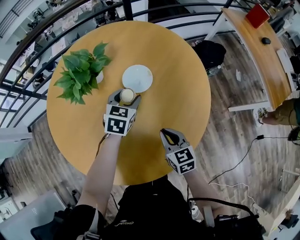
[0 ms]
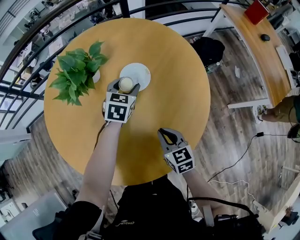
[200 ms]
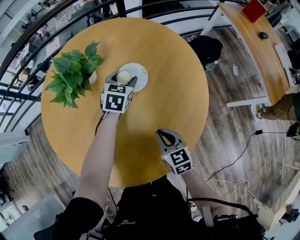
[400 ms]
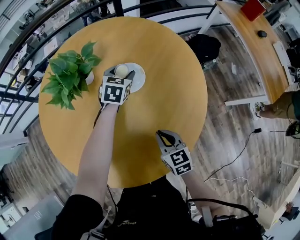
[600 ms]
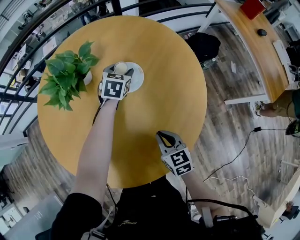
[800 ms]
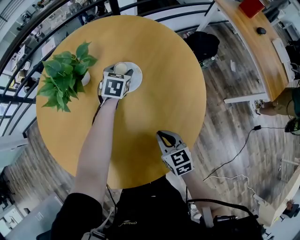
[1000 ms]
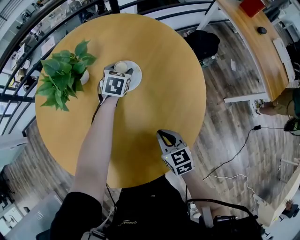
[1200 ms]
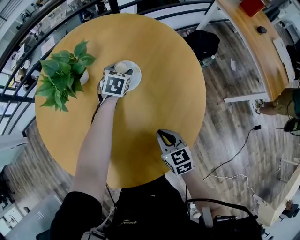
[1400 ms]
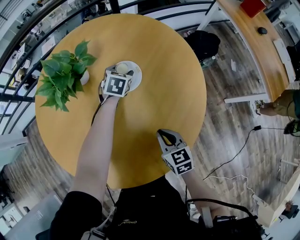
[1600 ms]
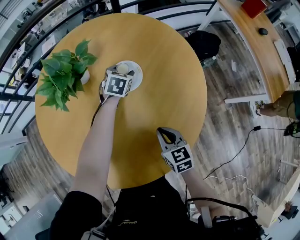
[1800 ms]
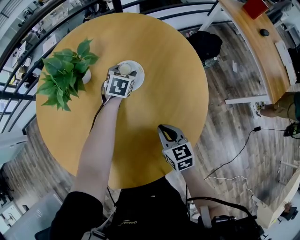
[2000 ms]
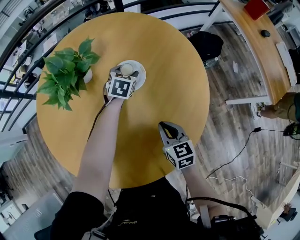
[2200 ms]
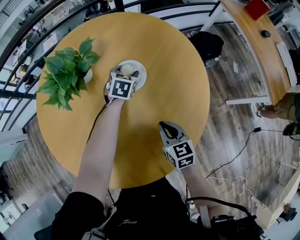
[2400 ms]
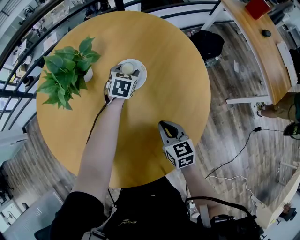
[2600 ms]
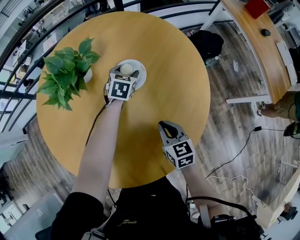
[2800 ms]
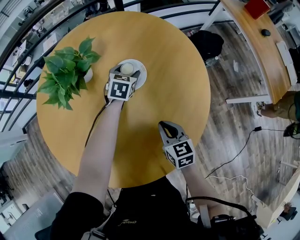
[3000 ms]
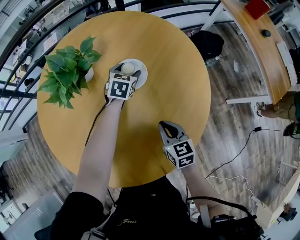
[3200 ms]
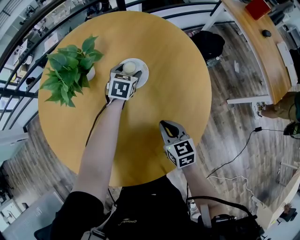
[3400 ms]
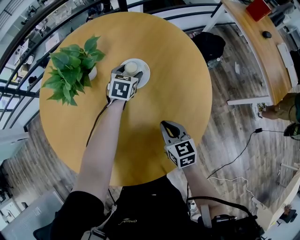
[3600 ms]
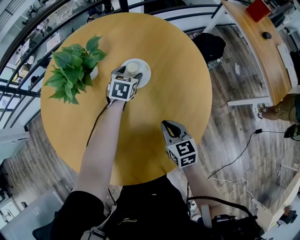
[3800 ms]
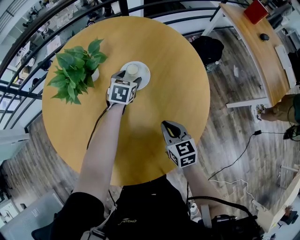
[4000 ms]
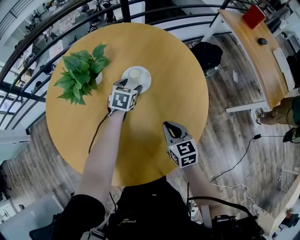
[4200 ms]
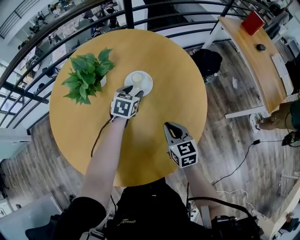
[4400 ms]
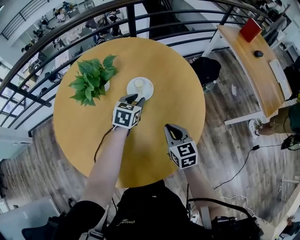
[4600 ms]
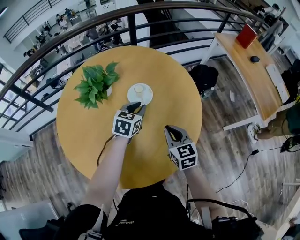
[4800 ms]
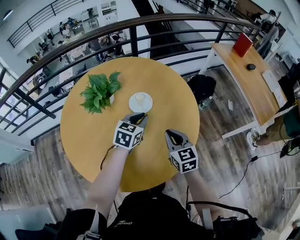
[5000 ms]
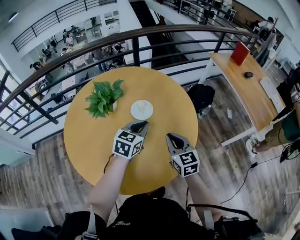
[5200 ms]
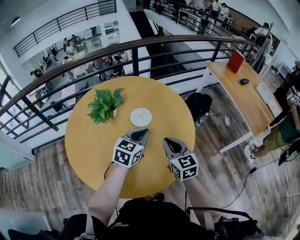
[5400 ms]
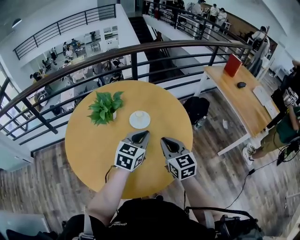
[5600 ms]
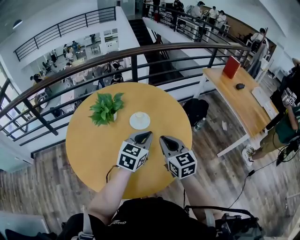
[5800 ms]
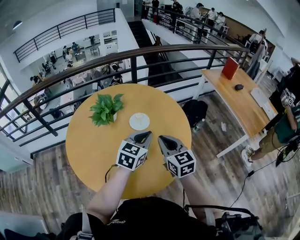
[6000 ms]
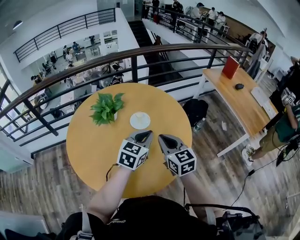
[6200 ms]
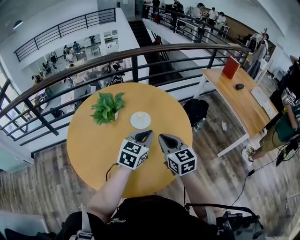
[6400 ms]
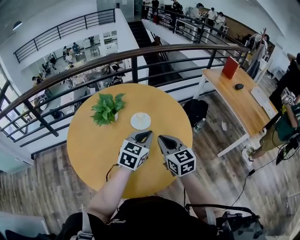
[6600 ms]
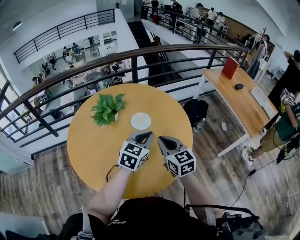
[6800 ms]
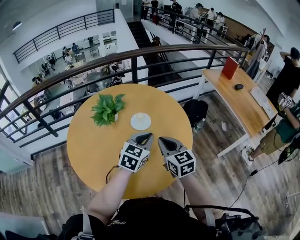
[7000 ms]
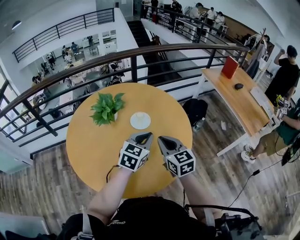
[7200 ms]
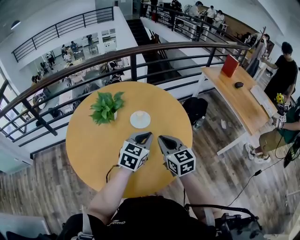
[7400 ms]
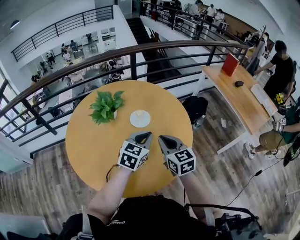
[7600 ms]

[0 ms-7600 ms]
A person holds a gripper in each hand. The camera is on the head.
0 ms to 1600 ms: The left gripper travels forward and downward by some 15 cm.
1600 ms to 3000 ms: The grippers move only a little.
3000 ms to 4600 ms: The right gripper travels upward by some 10 cm; the left gripper goes some 15 cm backward and upward, and closes its fingers.
4600 ms to 6000 ms: The left gripper shifts about 25 cm upward and backward, turns by about 20 degrees, and closes its fingers; the right gripper shifts some 20 cm upward.
6000 ms to 7600 ms: The grippers move only a little.

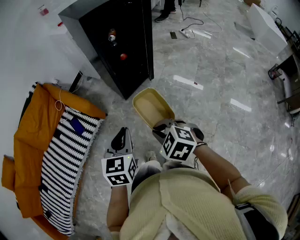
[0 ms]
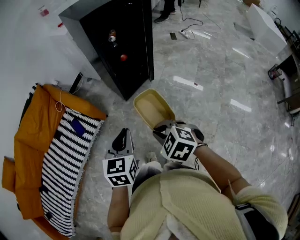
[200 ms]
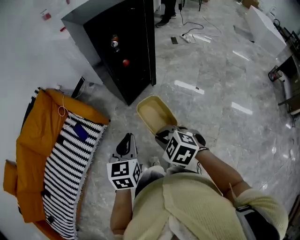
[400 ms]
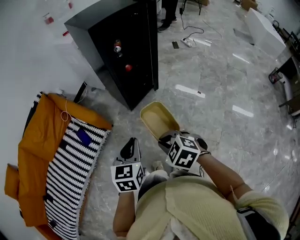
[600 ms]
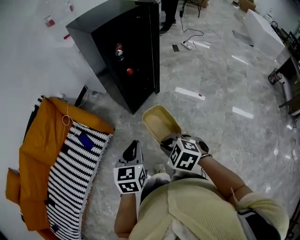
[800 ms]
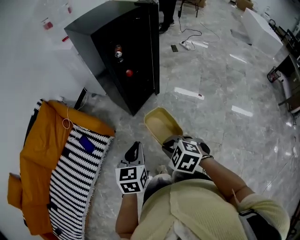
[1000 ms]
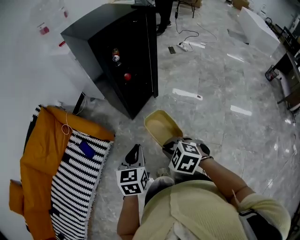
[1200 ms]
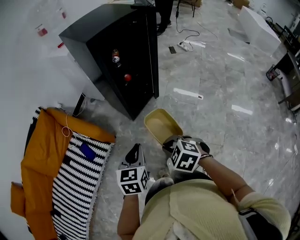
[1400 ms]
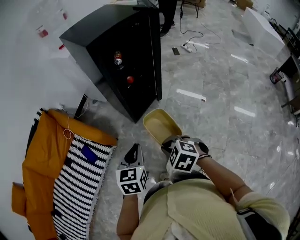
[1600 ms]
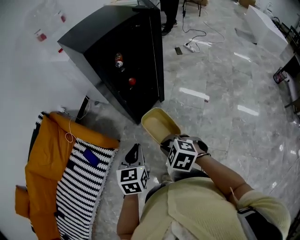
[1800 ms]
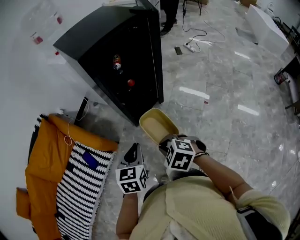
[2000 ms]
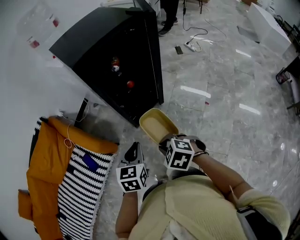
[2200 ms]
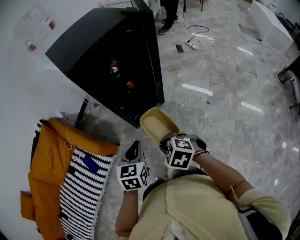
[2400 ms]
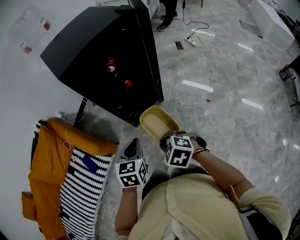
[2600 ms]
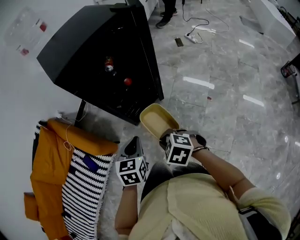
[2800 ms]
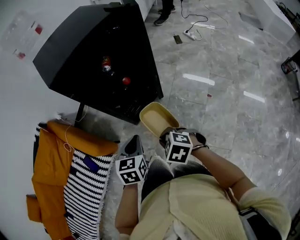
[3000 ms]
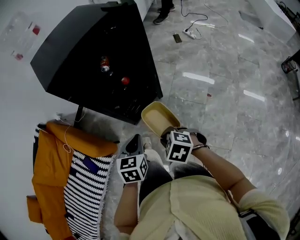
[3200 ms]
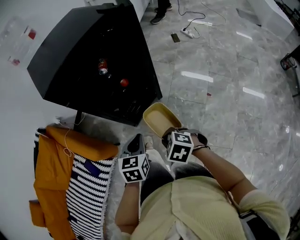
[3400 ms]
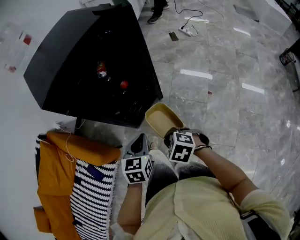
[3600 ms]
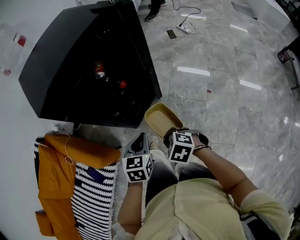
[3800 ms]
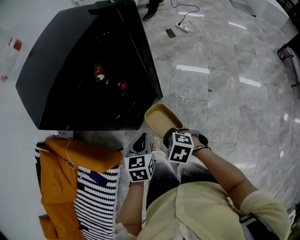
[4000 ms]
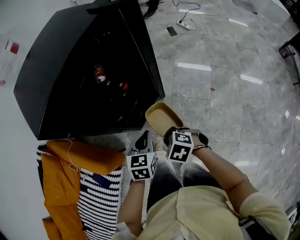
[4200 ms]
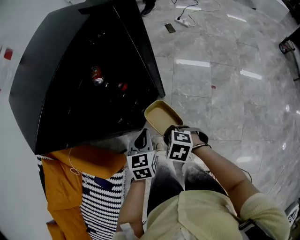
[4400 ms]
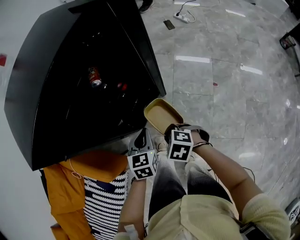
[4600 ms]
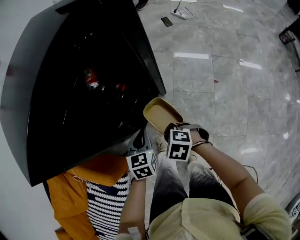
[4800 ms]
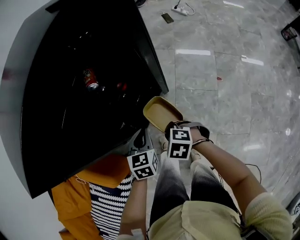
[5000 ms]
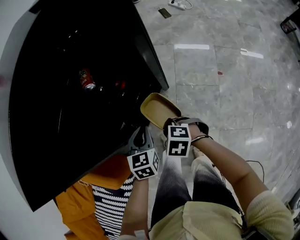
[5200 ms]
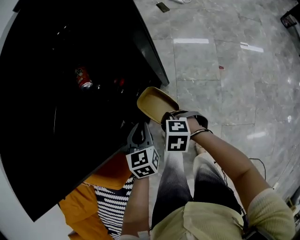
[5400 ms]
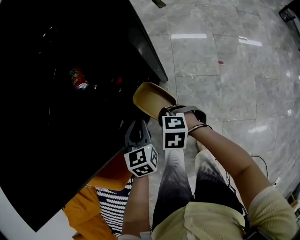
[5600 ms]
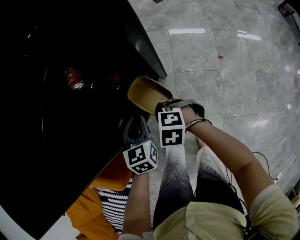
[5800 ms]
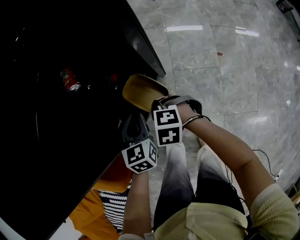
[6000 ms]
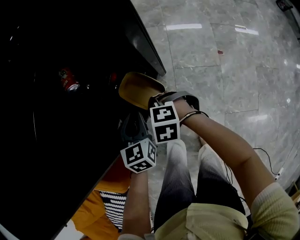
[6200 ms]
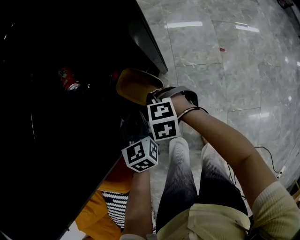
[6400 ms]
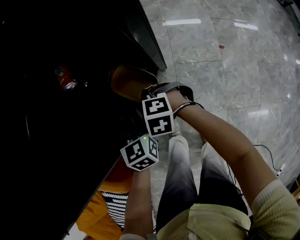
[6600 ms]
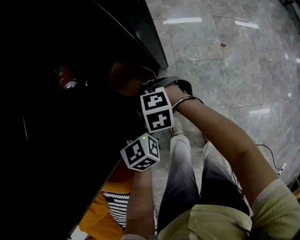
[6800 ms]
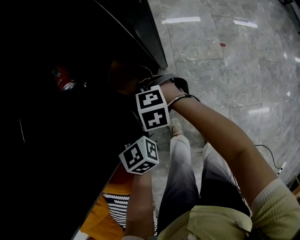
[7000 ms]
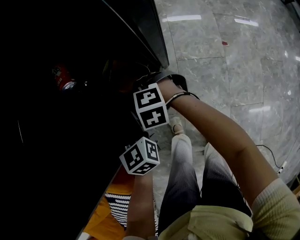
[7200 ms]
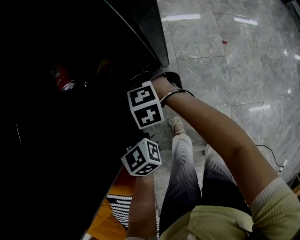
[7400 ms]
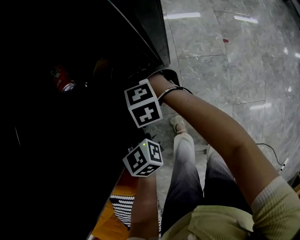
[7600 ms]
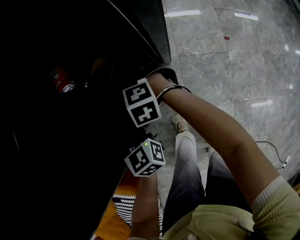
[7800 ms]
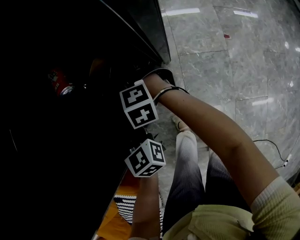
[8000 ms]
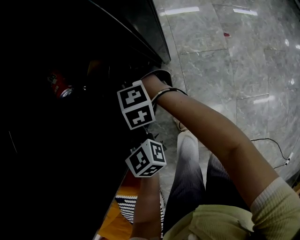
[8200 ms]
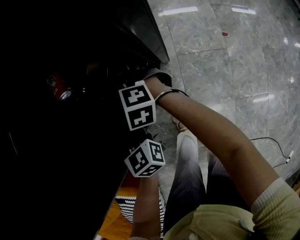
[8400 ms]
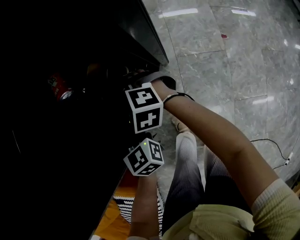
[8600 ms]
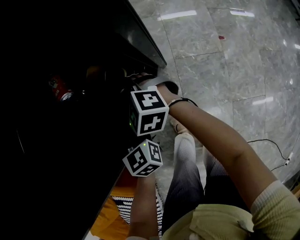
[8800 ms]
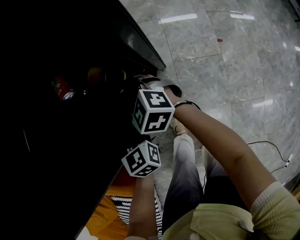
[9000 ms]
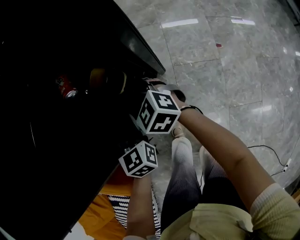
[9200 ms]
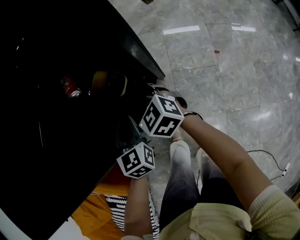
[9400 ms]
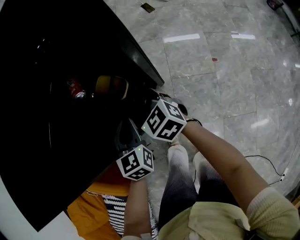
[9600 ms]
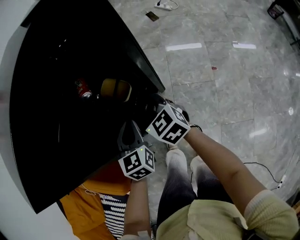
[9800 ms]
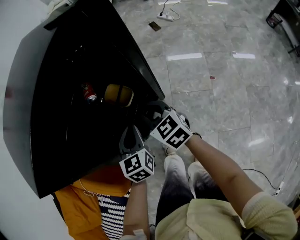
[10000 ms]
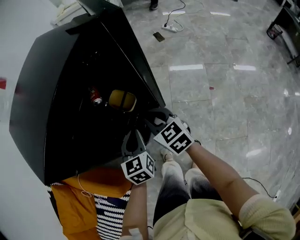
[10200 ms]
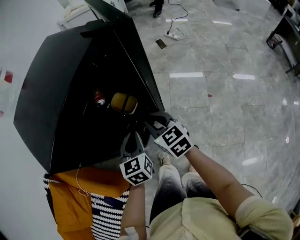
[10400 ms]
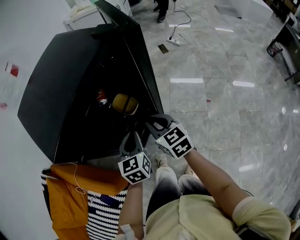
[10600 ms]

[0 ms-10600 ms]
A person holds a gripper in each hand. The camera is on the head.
0 ms to 1600 ms: Both grippers travel together forward, about 10 cm.
1600 ms to 3000 ms: Both grippers move to the right and forward, roughly 15 cm.
3000 ms to 4600 ms: The left gripper is displaced forward, downward and to the right by roughly 20 cm; the right gripper heads forward and downward, covering approximately 15 cm.
4600 ms to 6000 ms: The grippers both shift forward and downward by about 15 cm.
6000 ms to 7600 ms: The right gripper goes some 15 cm forward. Meanwhile the left gripper travels forward by roughly 5 cm.
7600 ms to 9000 ms: The right gripper shifts approximately 5 cm upward, and turns by about 30 degrees.
9000 ms to 10600 ms: Both grippers travel together upward and backward, some 20 cm. The right gripper changes its angle by some 30 degrees.

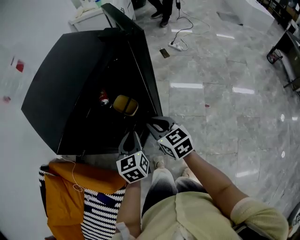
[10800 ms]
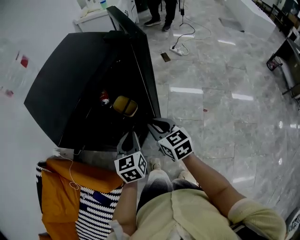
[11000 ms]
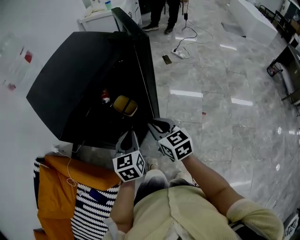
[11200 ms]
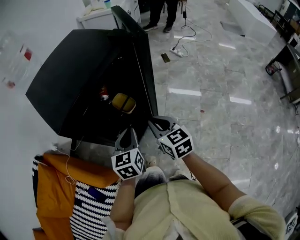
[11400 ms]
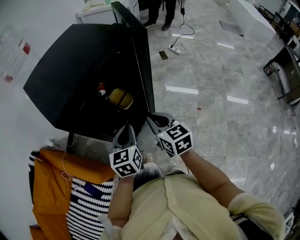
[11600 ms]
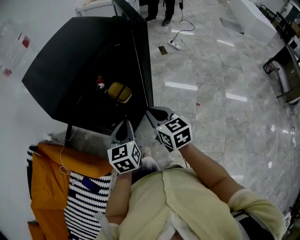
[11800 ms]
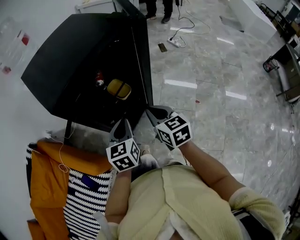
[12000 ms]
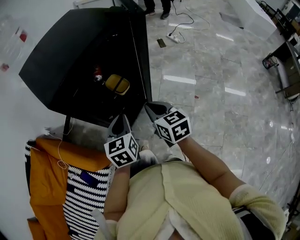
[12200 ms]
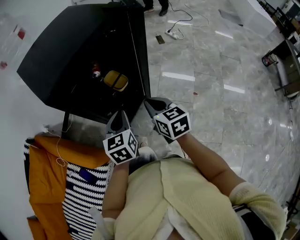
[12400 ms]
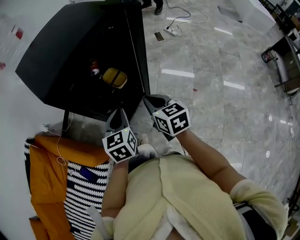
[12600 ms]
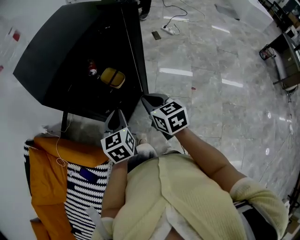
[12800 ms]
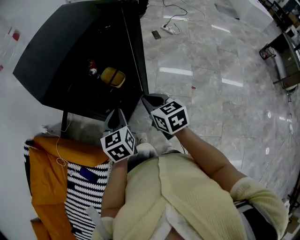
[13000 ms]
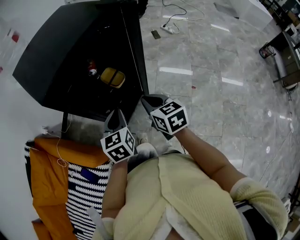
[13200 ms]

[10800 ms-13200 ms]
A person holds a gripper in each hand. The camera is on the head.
10800 ms to 12000 ms: The grippers both shift backward by approximately 5 cm.
12000 ms to 13200 ms: The grippers make only small movements.

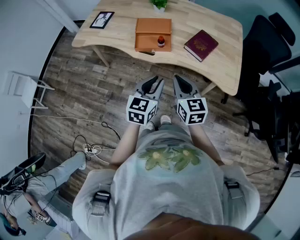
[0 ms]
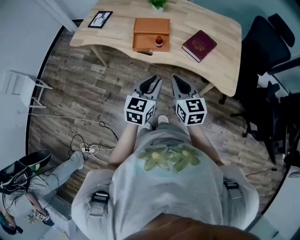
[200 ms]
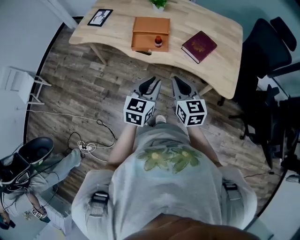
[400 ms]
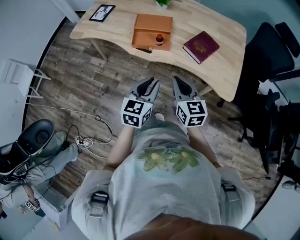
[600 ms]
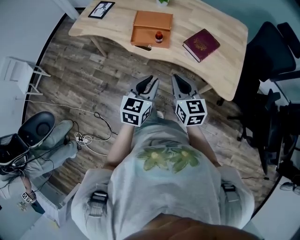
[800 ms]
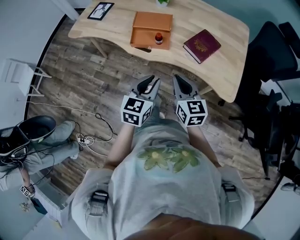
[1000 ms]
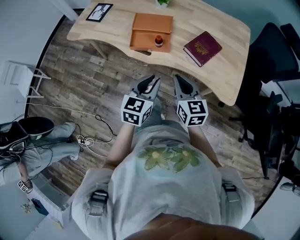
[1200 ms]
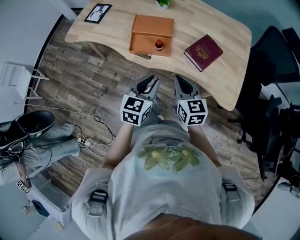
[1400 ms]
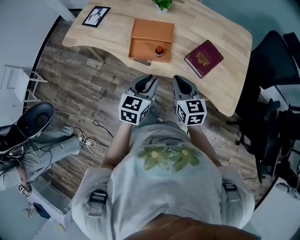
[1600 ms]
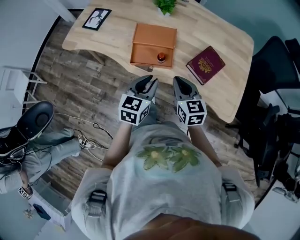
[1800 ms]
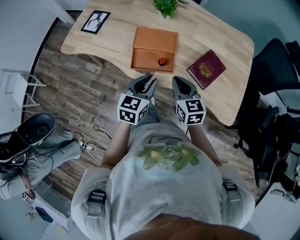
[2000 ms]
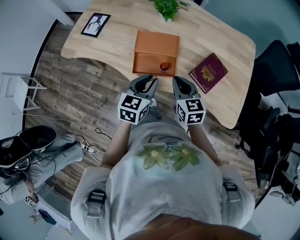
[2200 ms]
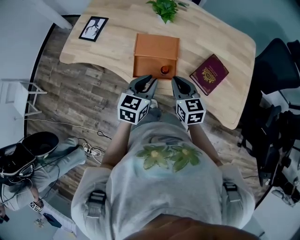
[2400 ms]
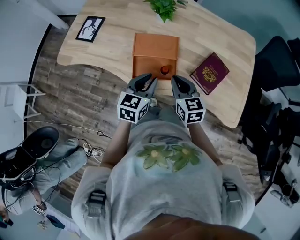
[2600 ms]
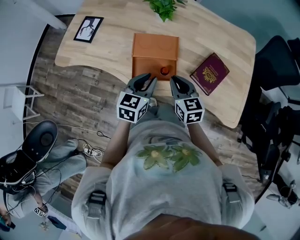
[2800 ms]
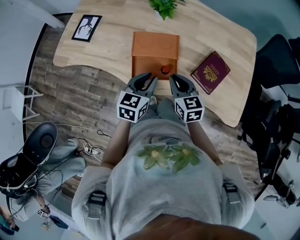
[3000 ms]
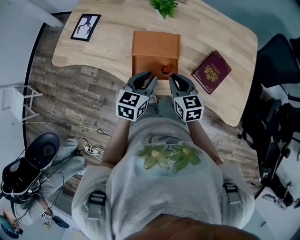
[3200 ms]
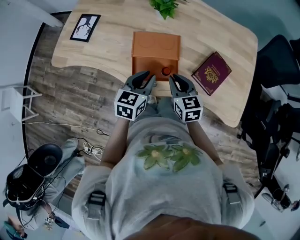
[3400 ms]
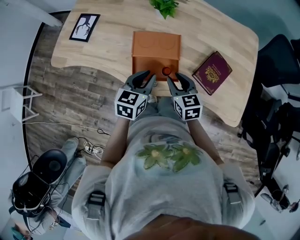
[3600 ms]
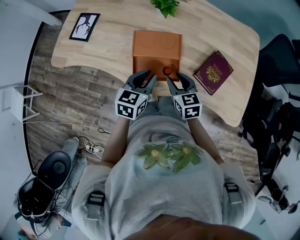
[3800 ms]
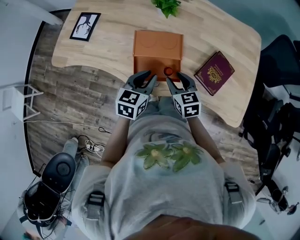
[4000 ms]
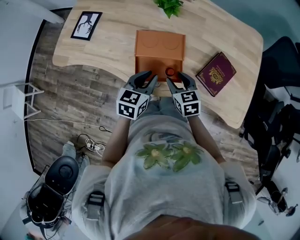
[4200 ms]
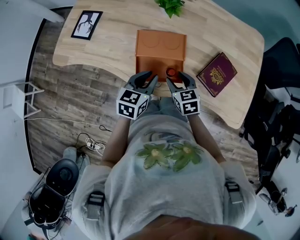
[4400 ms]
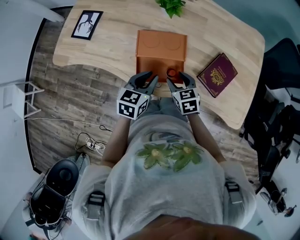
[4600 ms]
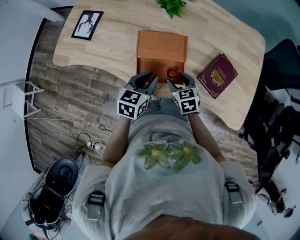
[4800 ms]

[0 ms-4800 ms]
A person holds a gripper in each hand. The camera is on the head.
0 ms to 1600 ms: Both grippers move forward, approximately 15 cm.
1600 ms to 3200 ms: The left gripper travels forward and to the left by about 15 cm; the right gripper is displaced forward, to the left and downward by some 15 cm.
3200 ms to 4800 ms: The right gripper goes approximately 10 cm downward, and opens up.
